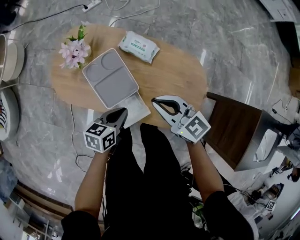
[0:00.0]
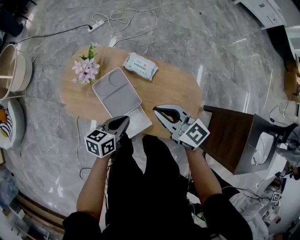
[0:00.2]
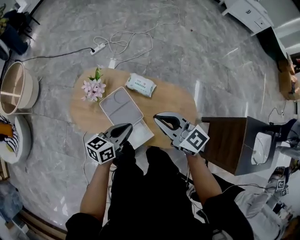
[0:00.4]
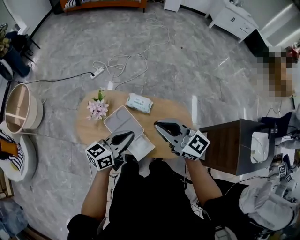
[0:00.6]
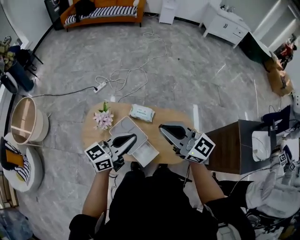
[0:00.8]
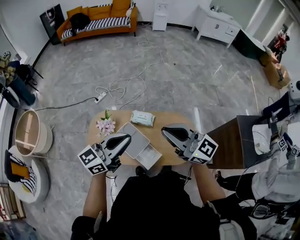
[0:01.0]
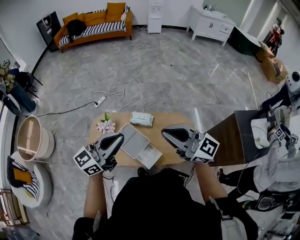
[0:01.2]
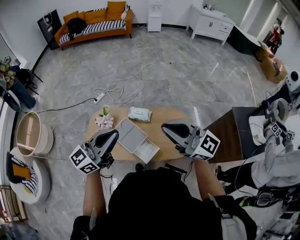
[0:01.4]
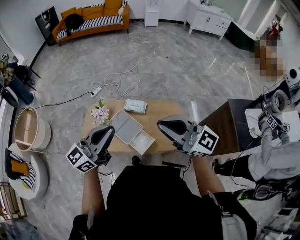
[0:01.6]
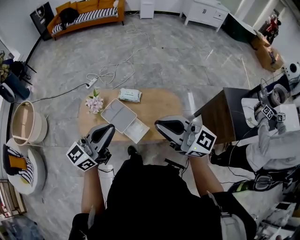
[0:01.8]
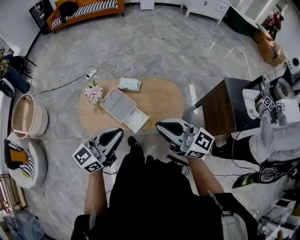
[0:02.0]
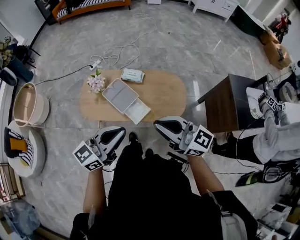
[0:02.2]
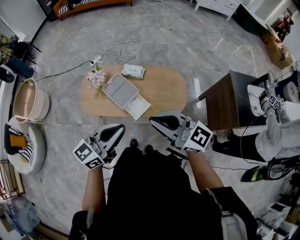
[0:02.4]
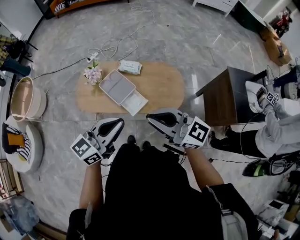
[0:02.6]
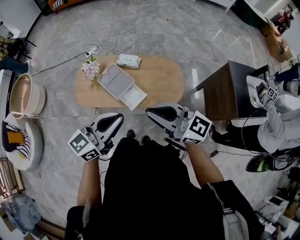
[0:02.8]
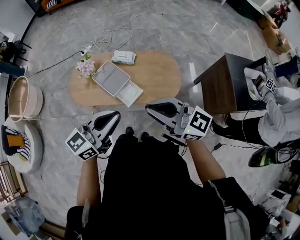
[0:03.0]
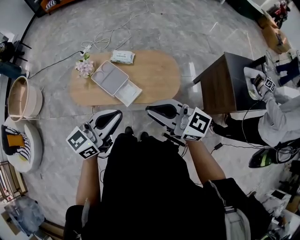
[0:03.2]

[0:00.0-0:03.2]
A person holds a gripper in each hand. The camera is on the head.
0:00.0 to 0:01.6: The right gripper shifts some 50 cm upward and backward, and angles its fingers upward, by some 30 degrees. The left gripper heads upward, covering approximately 50 cm, and points its fingers about 50 degrees further upward.
0:01.6 to 0:03.2: The left gripper goes roughly 20 cm backward, to the right and downward; the right gripper is displaced backward and downward by some 20 cm.

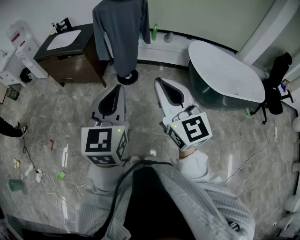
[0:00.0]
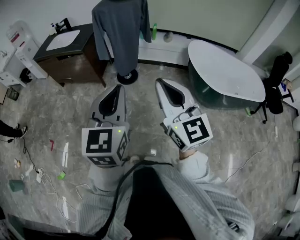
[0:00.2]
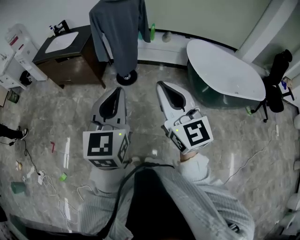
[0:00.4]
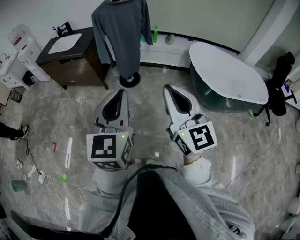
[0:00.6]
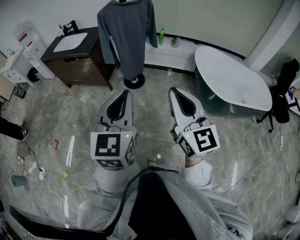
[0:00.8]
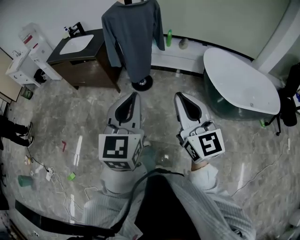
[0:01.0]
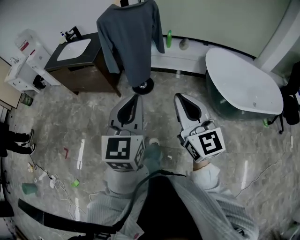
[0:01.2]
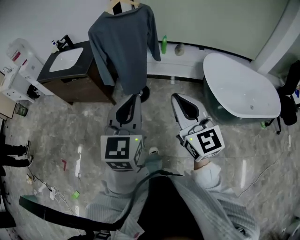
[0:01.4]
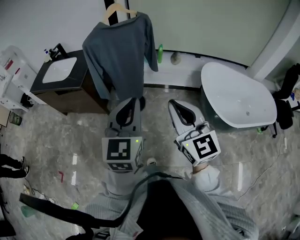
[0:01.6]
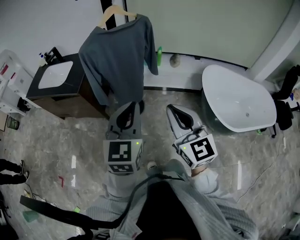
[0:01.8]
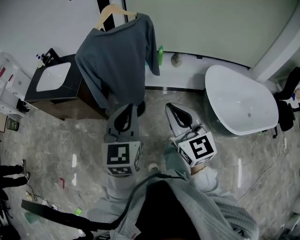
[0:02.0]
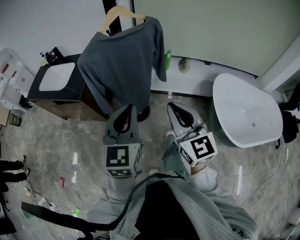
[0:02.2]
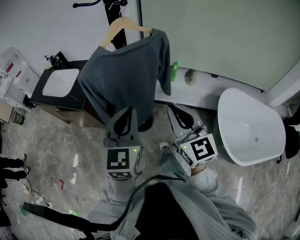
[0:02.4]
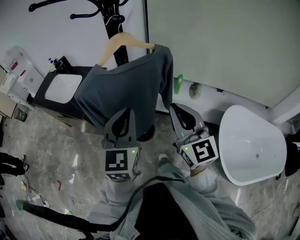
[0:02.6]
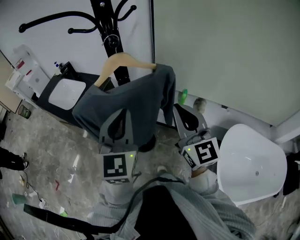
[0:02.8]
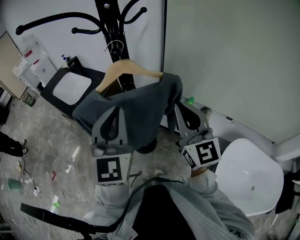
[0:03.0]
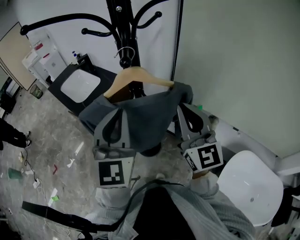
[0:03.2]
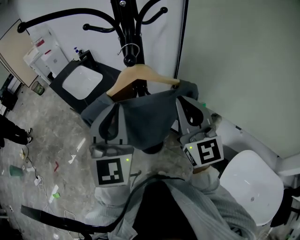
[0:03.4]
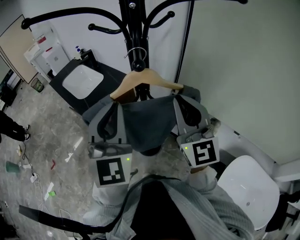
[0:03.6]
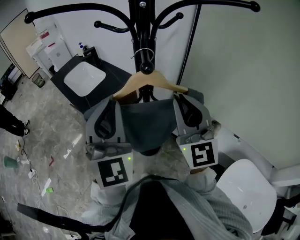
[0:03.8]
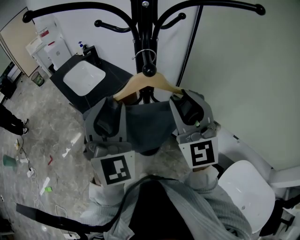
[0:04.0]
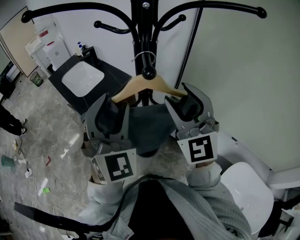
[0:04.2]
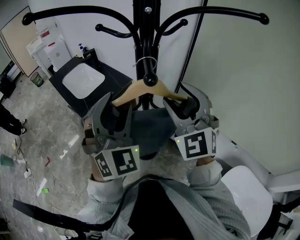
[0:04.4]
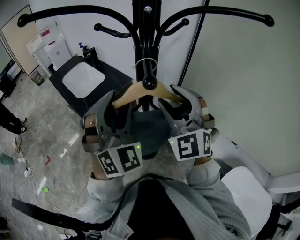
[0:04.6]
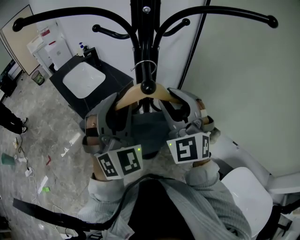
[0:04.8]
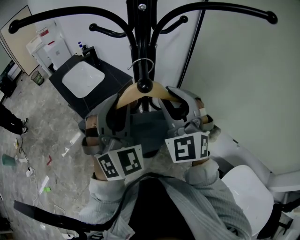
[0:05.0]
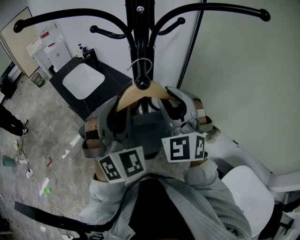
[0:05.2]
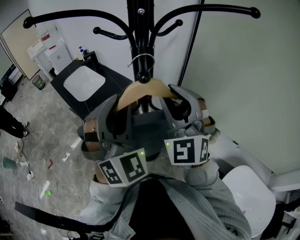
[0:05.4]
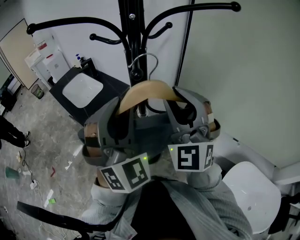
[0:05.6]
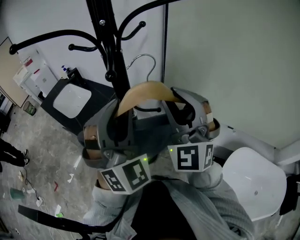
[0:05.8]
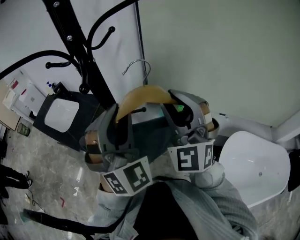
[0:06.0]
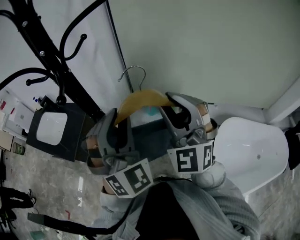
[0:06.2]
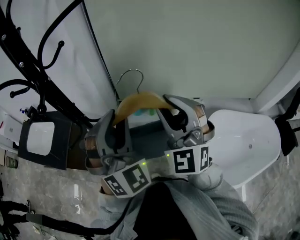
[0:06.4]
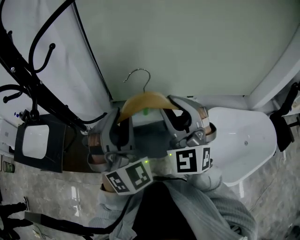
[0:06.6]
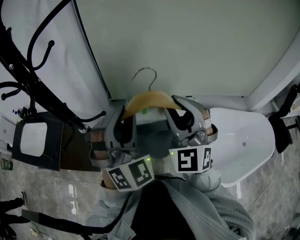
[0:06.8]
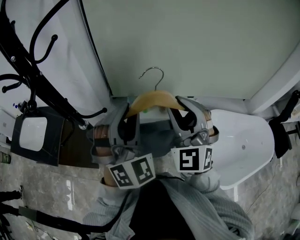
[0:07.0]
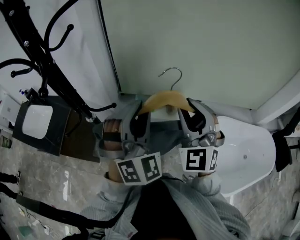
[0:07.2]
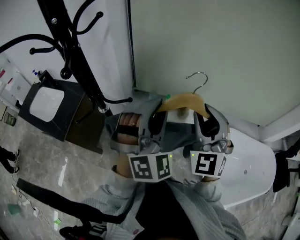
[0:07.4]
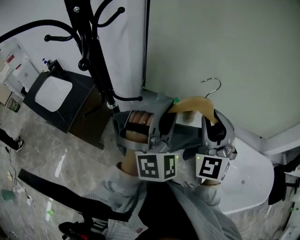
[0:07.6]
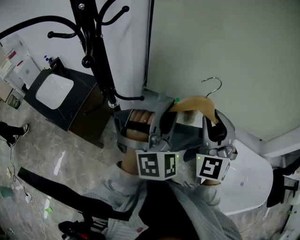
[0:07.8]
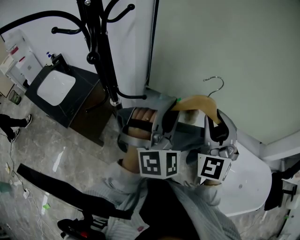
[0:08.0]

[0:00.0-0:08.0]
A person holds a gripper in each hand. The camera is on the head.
0:00.0 to 0:01.6: The two grippers go some 30 cm forward.
0:01.6 to 0:03.2: The two grippers travel together, roughly 50 cm. The left gripper changes its angle by about 30 degrees. The right gripper turns by approximately 20 degrees.
0:03.2 to 0:04.8: The right gripper heads forward and to the left, covering approximately 15 cm, turns by approximately 40 degrees, and opens its fingers. The left gripper moves forward, about 10 cm, rotates roughly 40 degrees, and opens.
0:04.8 to 0:06.4: The left gripper ends up some 20 cm from where it was, and swivels approximately 30 degrees, while the right gripper shifts by roughly 25 cm, and changes its angle by about 40 degrees.
0:06.4 to 0:08.0: The left gripper shifts by approximately 5 cm, while the right gripper shifts by about 5 cm.

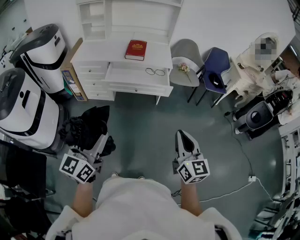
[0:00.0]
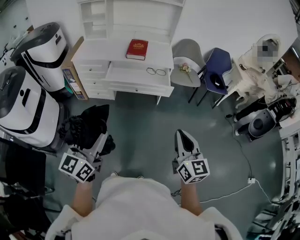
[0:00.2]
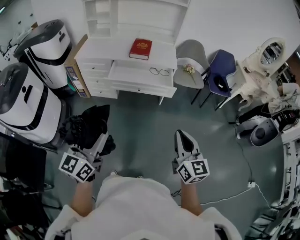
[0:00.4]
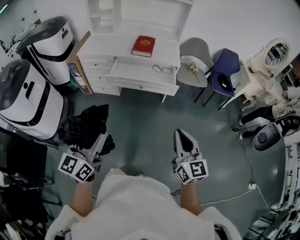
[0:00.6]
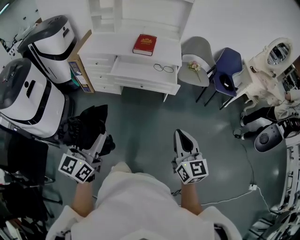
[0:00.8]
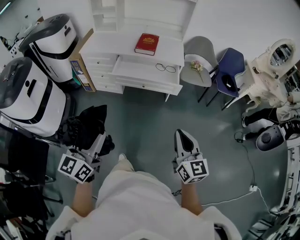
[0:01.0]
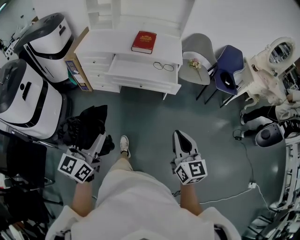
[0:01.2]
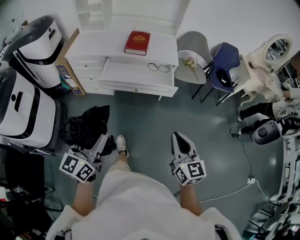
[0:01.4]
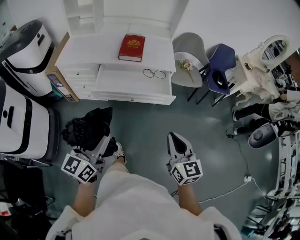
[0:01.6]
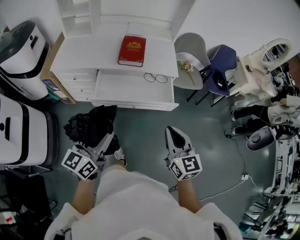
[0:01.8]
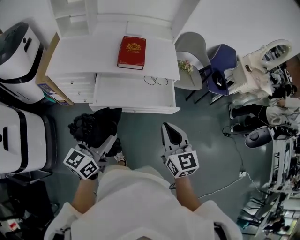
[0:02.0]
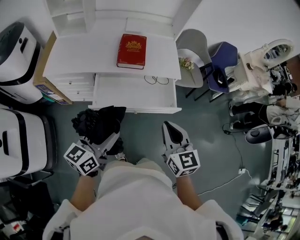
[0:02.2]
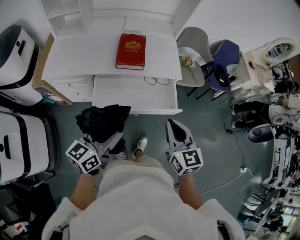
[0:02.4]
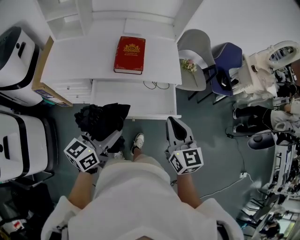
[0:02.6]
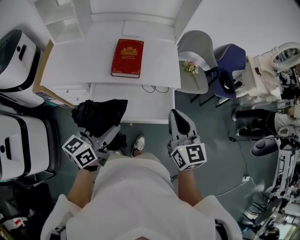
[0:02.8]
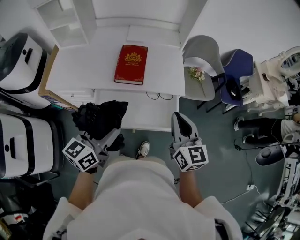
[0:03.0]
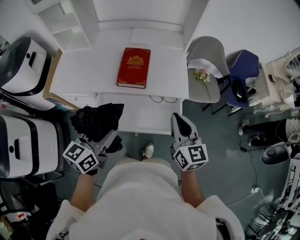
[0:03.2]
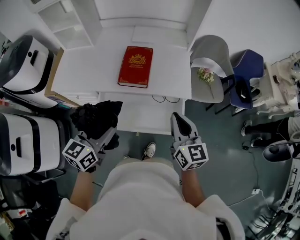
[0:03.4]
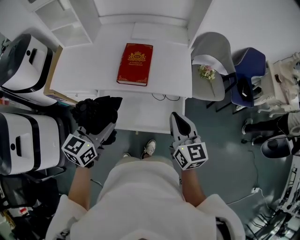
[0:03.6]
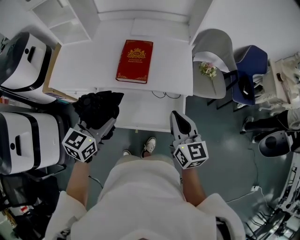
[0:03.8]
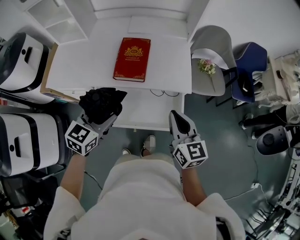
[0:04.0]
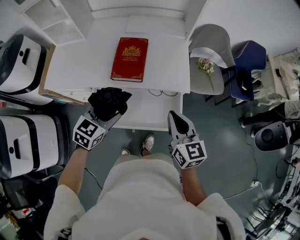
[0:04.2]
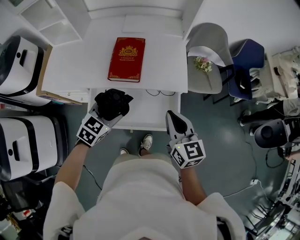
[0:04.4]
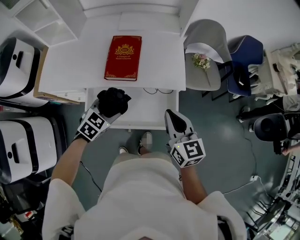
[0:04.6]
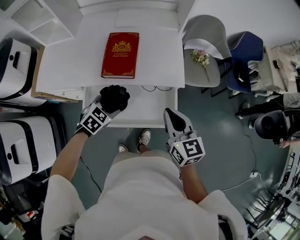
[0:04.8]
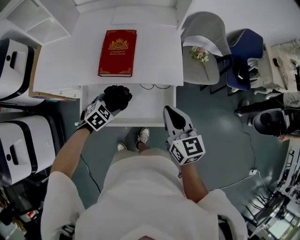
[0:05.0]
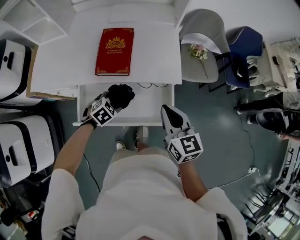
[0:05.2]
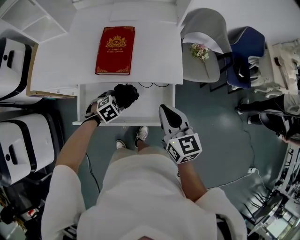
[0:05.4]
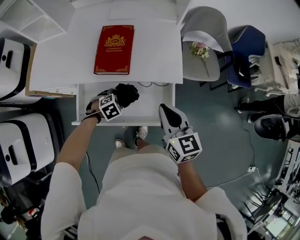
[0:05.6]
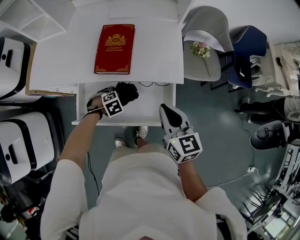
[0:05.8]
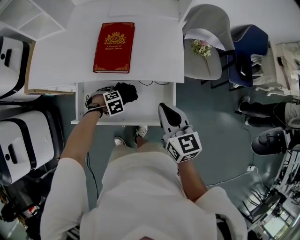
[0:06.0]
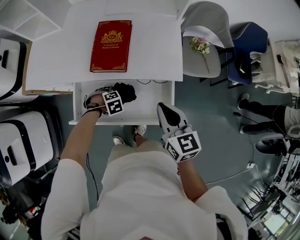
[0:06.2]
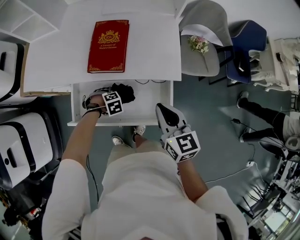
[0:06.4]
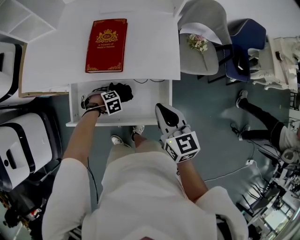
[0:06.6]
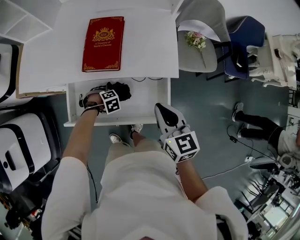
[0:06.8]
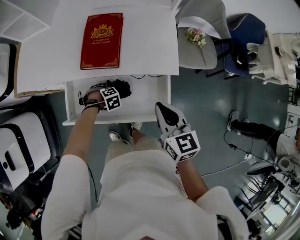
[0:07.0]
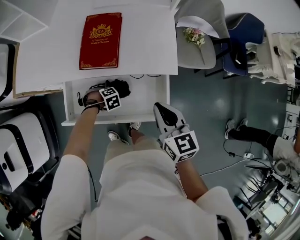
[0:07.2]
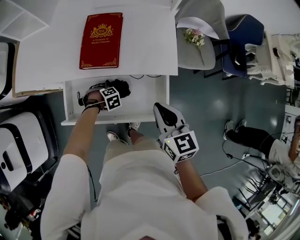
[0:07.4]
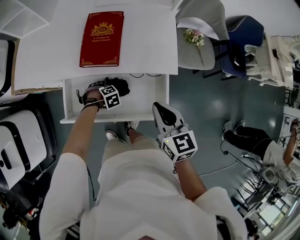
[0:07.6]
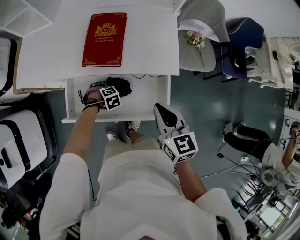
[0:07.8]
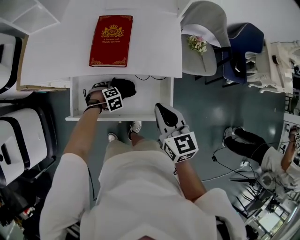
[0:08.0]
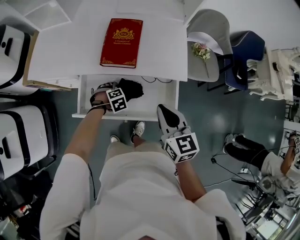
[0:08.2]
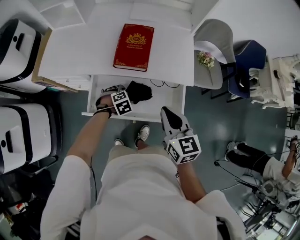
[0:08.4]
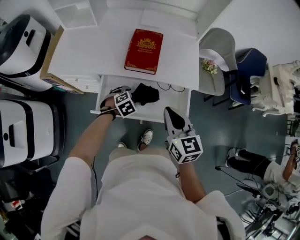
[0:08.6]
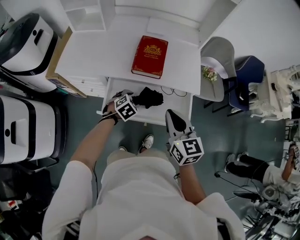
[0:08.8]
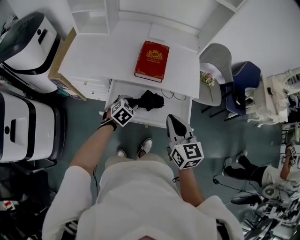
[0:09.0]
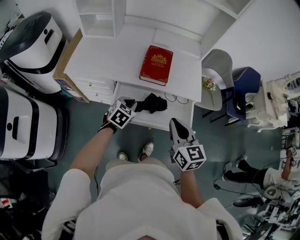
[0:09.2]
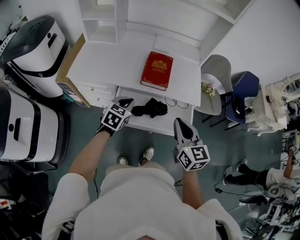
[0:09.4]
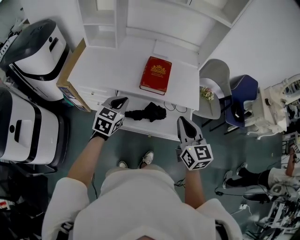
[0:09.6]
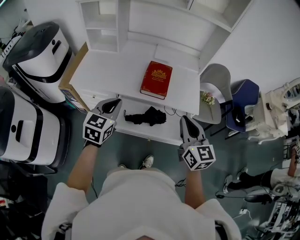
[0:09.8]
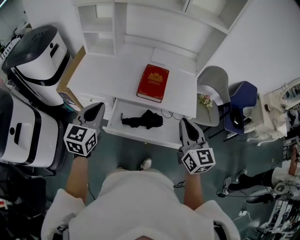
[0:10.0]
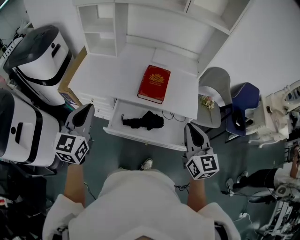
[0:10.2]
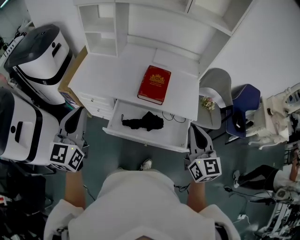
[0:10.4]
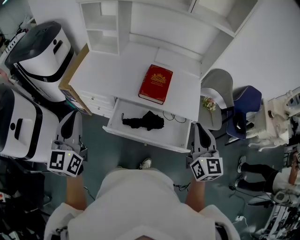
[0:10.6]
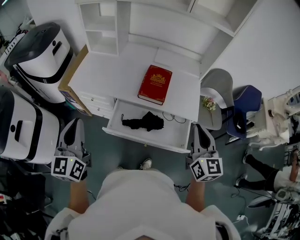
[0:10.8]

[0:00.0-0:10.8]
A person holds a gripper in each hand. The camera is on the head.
0:00.0 to 0:01.6: Both grippers move forward, about 20 cm.
0:01.6 to 0:03.0: The two grippers go about 35 cm forward.
0:03.0 to 0:04.6: The left gripper heads downward and forward, covering about 20 cm, and angles its fingers downward, by some 40 degrees. The right gripper is displaced downward and forward by some 10 cm.
0:04.6 to 0:06.2: The left gripper shifts some 20 cm downward, and tips its fingers downward by roughly 40 degrees, while the right gripper heads downward, covering some 5 cm.
0:06.2 to 0:07.8: The grippers move only a little.
0:07.8 to 0:09.2: The left gripper is displaced upward by some 25 cm, tips its fingers upward by roughly 50 degrees, and closes up. The right gripper moves approximately 20 cm.
0:09.2 to 0:10.8: The left gripper is displaced upward and to the left by about 30 cm, and tilts its fingers some 40 degrees upward, while the right gripper moves upward and to the right, about 15 cm.

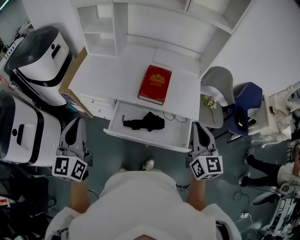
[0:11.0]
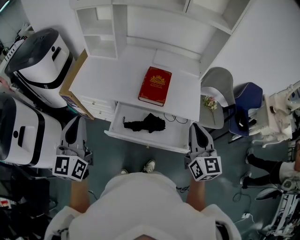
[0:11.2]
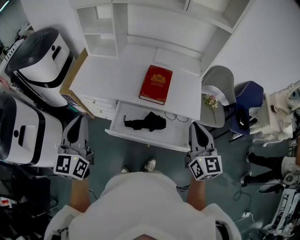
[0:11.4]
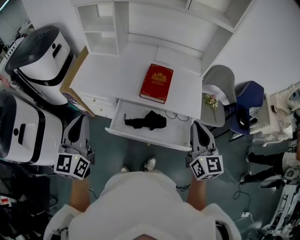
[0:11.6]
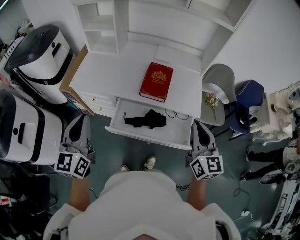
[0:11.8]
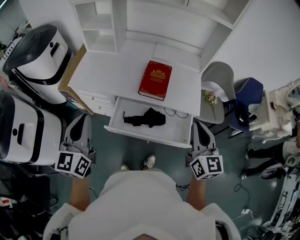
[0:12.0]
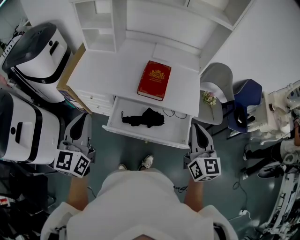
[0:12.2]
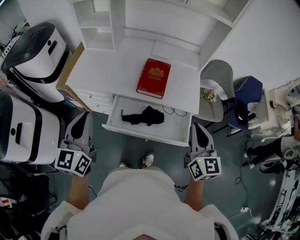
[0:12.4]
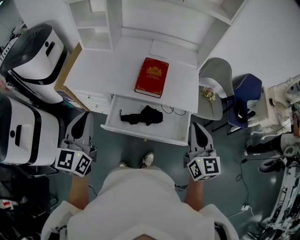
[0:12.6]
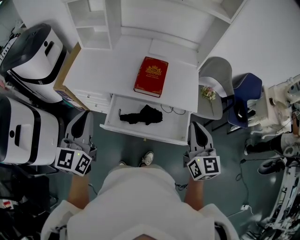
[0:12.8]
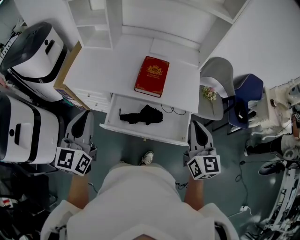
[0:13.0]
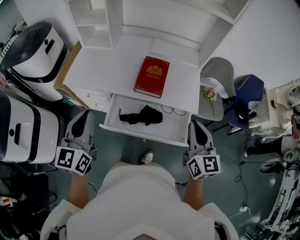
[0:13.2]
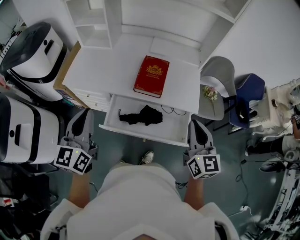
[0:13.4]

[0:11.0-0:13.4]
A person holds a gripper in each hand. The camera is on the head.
0:11.0 to 0:12.2: The grippers move only a little.
0:12.2 to 0:13.4: The left gripper shifts by approximately 5 cm.
